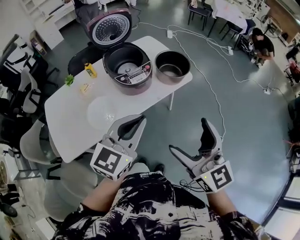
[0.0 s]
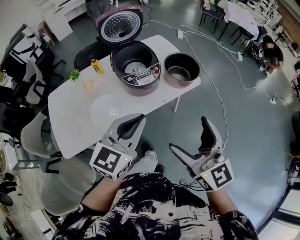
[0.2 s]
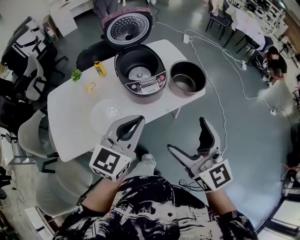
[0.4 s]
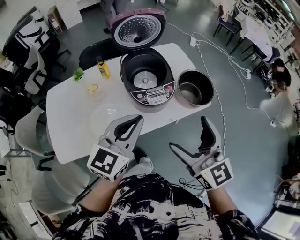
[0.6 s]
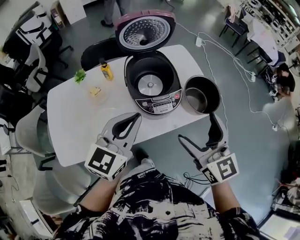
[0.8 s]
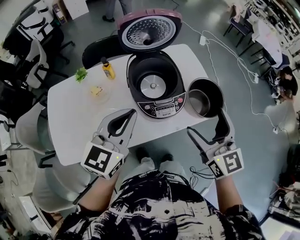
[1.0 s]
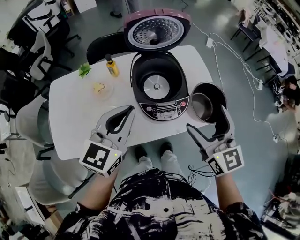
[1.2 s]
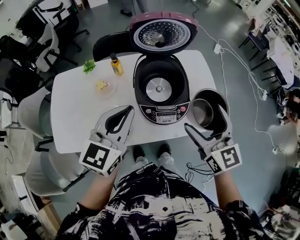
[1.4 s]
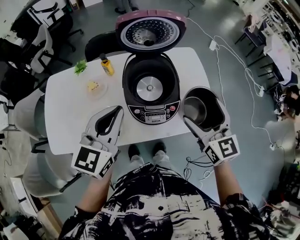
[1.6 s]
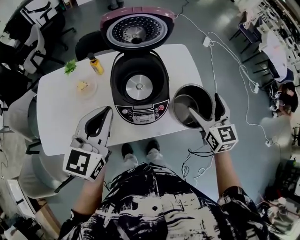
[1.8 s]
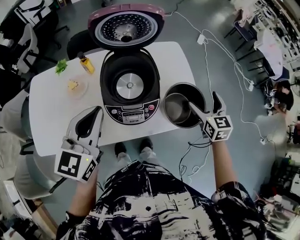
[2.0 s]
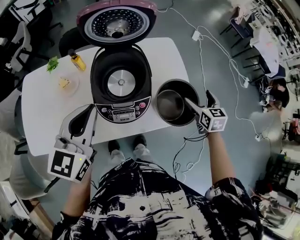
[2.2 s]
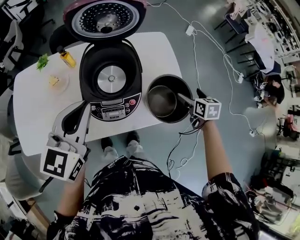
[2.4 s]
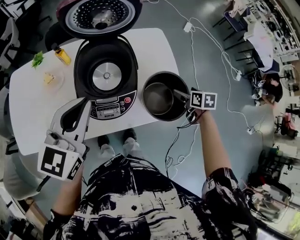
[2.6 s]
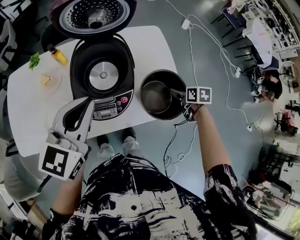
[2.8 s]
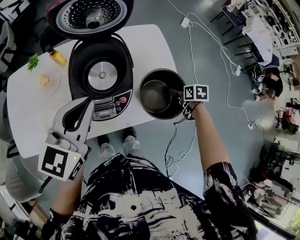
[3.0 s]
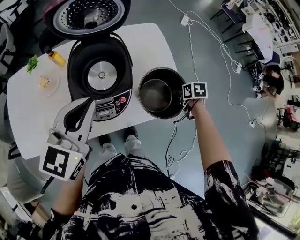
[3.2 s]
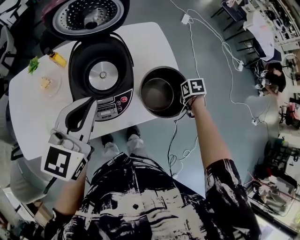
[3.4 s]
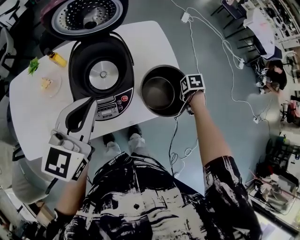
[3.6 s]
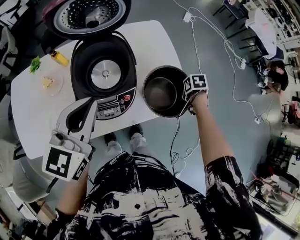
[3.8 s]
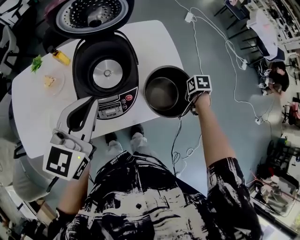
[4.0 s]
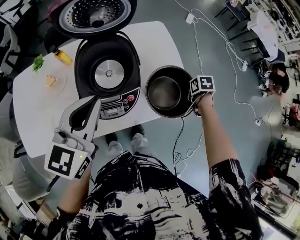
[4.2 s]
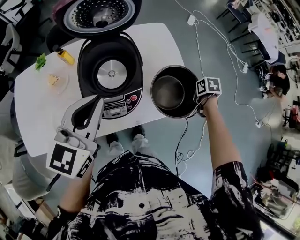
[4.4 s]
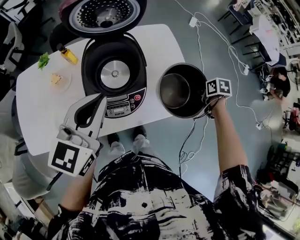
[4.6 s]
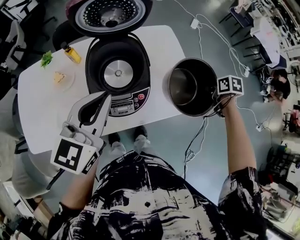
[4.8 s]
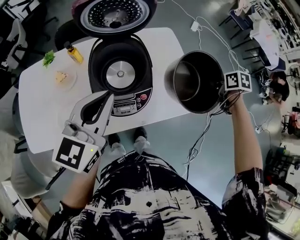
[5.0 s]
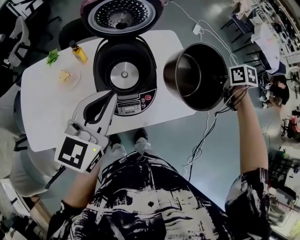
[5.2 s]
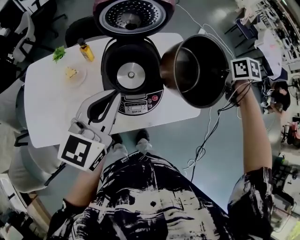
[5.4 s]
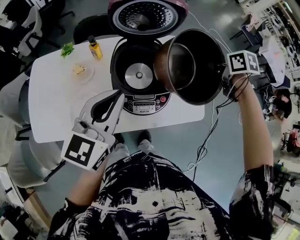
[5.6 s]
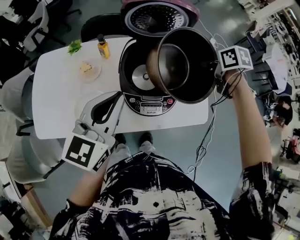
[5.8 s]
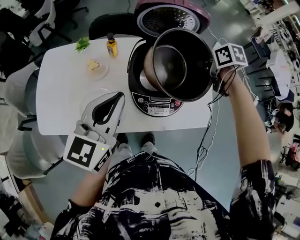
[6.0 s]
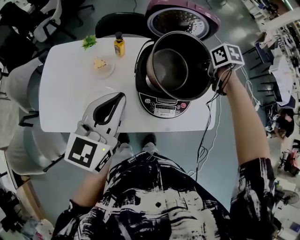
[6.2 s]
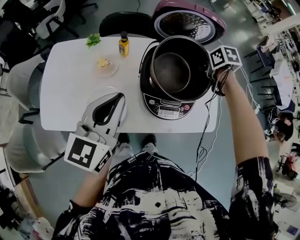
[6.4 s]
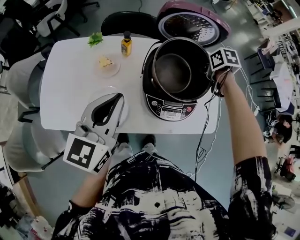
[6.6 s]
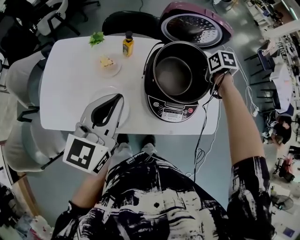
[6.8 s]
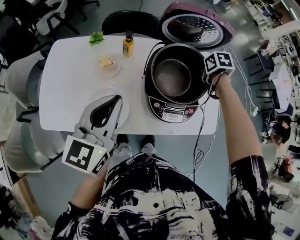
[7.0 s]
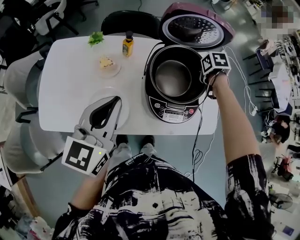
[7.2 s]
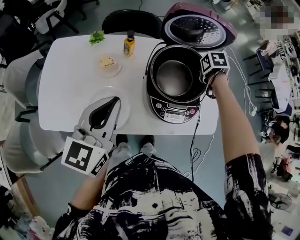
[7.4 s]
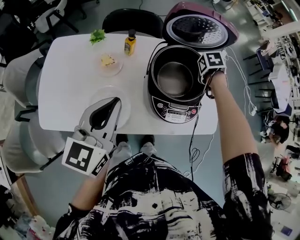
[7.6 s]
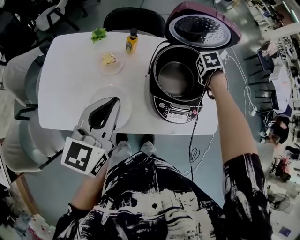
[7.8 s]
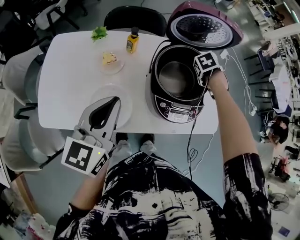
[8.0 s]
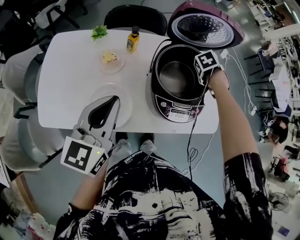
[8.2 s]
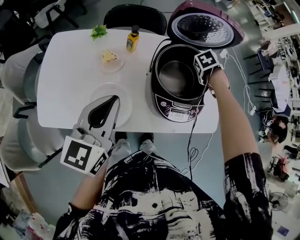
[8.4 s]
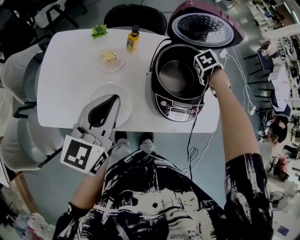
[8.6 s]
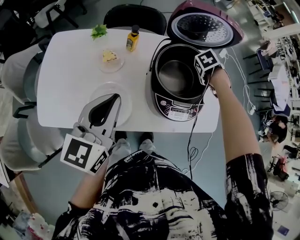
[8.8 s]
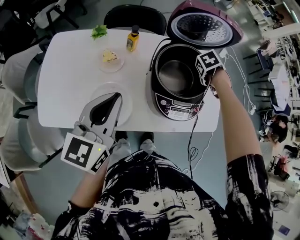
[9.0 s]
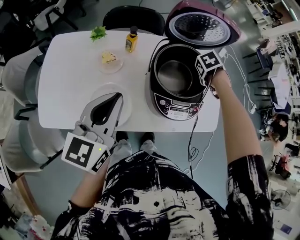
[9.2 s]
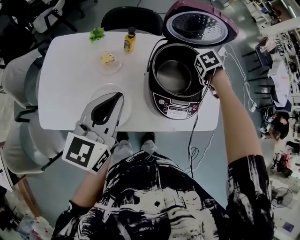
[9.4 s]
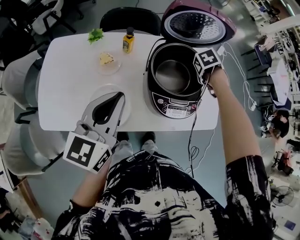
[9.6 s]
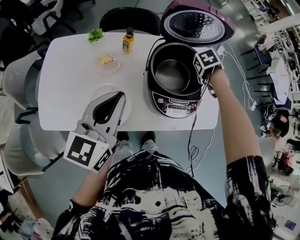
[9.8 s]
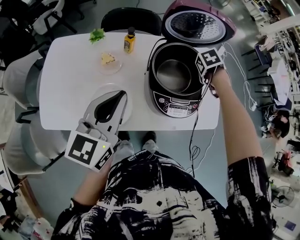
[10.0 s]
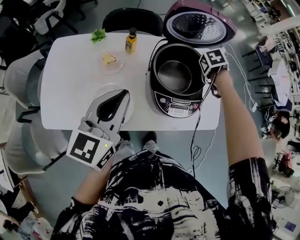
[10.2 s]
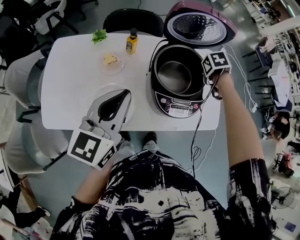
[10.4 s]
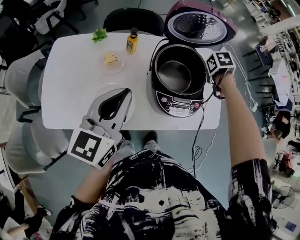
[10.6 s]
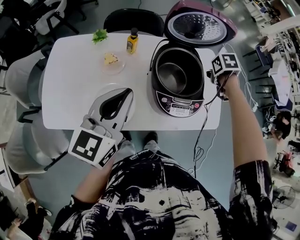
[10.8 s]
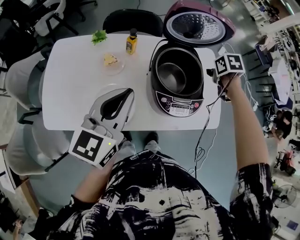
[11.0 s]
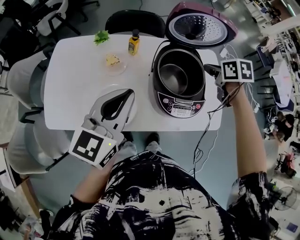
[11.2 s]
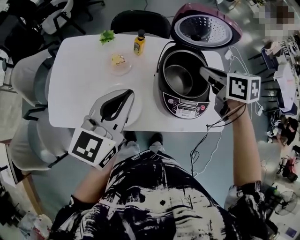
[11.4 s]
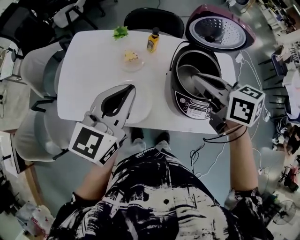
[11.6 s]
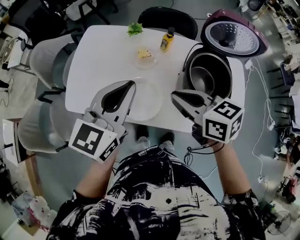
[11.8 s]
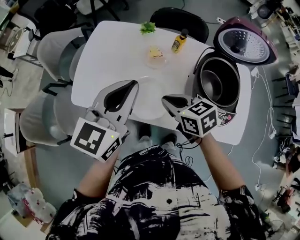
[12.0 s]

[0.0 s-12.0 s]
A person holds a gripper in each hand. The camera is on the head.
0.0 to 1.6 s: The right gripper shifts by roughly 40 cm, and changes its angle by roughly 20 degrees, while the left gripper ends up some 30 cm from where it was, and turns by some 30 degrees.
1.6 to 3.0 s: The left gripper goes about 10 cm to the right, while the right gripper shifts about 40 cm downward and to the right, and tips its fingers downward by approximately 50 degrees.
3.0 to 4.4 s: The right gripper closes up.
4.4 to 6.0 s: The left gripper changes place by roughly 15 cm. Meanwhile the right gripper changes place by approximately 35 cm, and changes its angle by approximately 30 degrees.
6.0 to 7.6 s: The left gripper moves roughly 10 cm; the right gripper heads downward, covering about 10 cm, and changes its angle by about 30 degrees.
9.0 to 10.4 s: The grippers make only small movements.
10.4 to 12.0 s: The left gripper changes place by about 10 cm. The right gripper goes upward and returns, roughly 15 cm each way, and points its fingers roughly 40 degrees further upward.

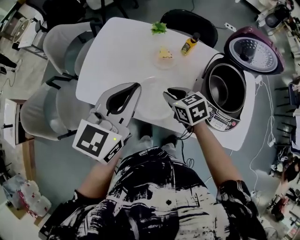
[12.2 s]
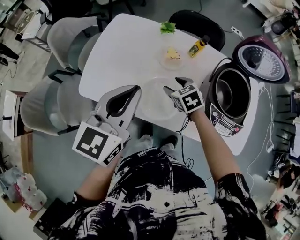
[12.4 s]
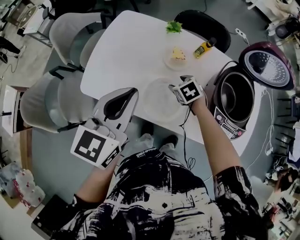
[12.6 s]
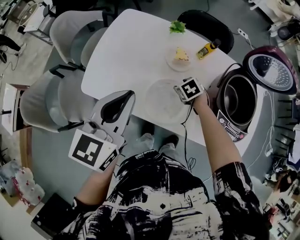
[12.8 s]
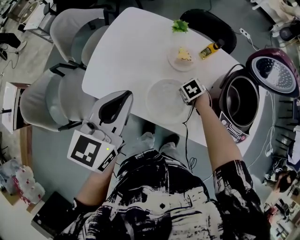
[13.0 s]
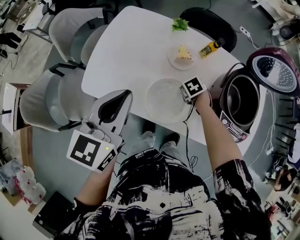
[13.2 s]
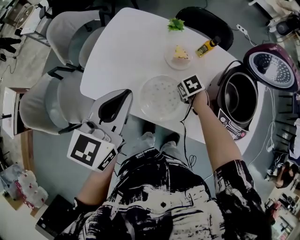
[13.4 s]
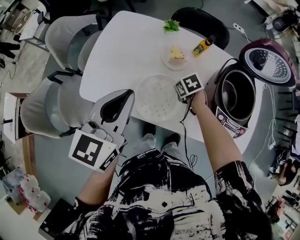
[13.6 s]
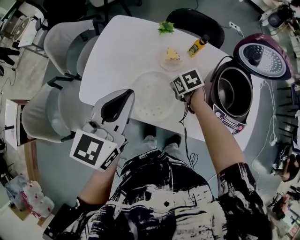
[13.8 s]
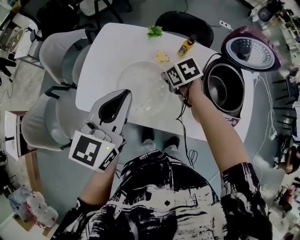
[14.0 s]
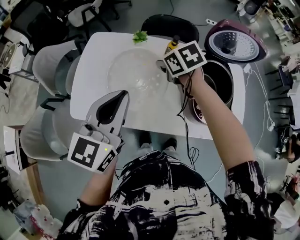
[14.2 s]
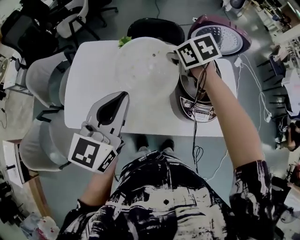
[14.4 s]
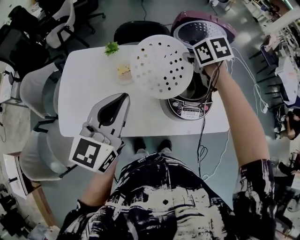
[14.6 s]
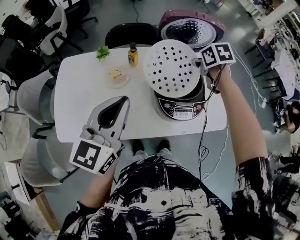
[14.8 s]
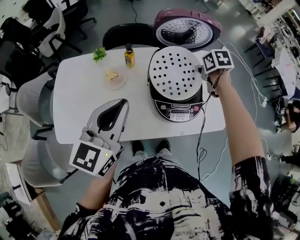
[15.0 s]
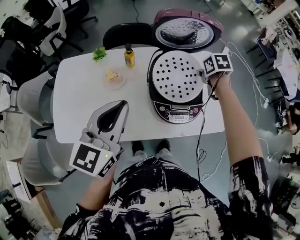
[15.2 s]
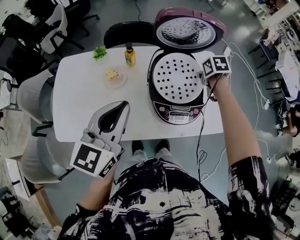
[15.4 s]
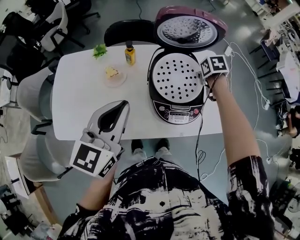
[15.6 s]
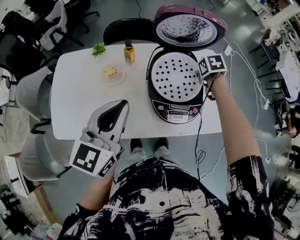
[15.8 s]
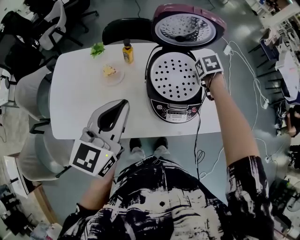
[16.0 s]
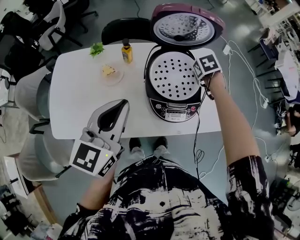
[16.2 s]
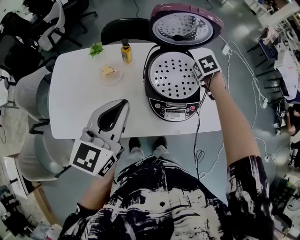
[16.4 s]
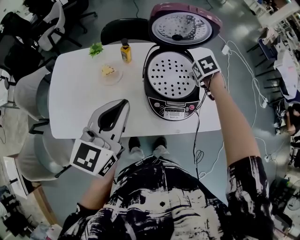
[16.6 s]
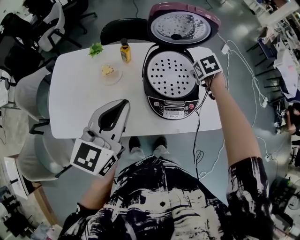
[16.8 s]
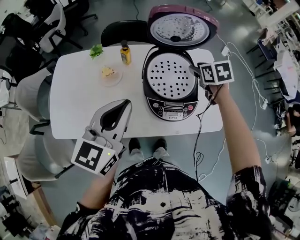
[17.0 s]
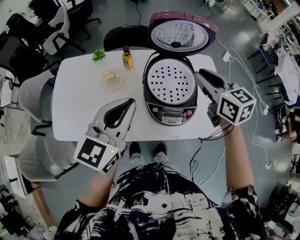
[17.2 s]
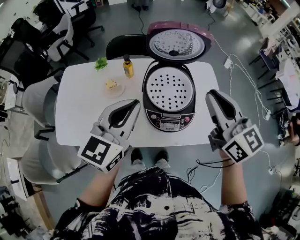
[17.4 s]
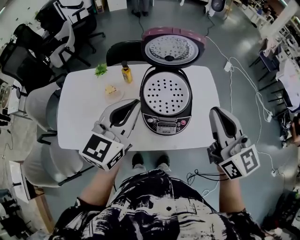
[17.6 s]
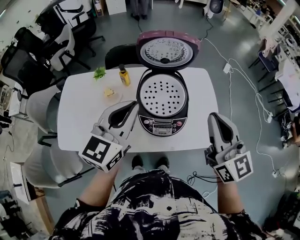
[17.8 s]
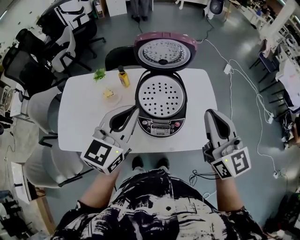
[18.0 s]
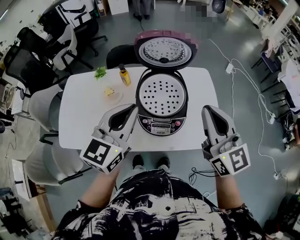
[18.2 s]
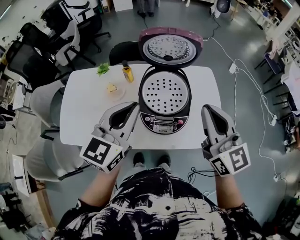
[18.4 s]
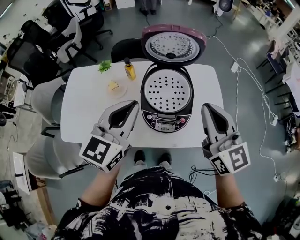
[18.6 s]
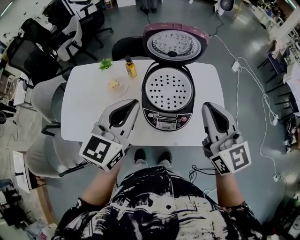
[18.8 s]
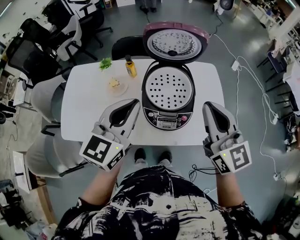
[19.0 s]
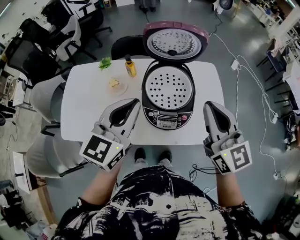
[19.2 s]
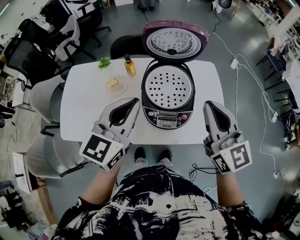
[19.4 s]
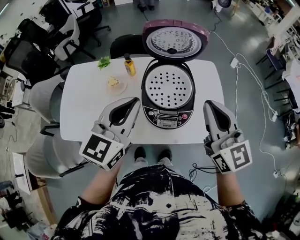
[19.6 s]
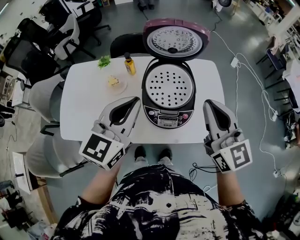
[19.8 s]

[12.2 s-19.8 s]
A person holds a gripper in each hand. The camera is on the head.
12.2 to 13.8 s: The right gripper is displaced downward by about 10 cm, turns by about 20 degrees, and opens and closes again.
13.8 to 15.2 s: The left gripper ends up approximately 20 cm from where it was, and turns by approximately 20 degrees; the right gripper shifts by roughly 40 cm, and changes its angle by about 40 degrees.
15.2 to 16.8 s: The right gripper turns by some 20 degrees.
16.8 to 18.2 s: The right gripper goes approximately 35 cm upward and backward, and points its fingers roughly 70 degrees further upward; the left gripper moves to the right, some 10 cm.
18.2 to 19.8 s: The grippers move only a little.

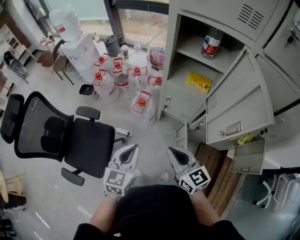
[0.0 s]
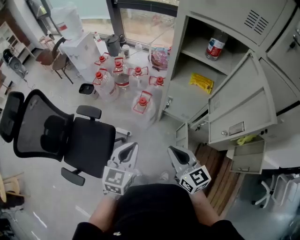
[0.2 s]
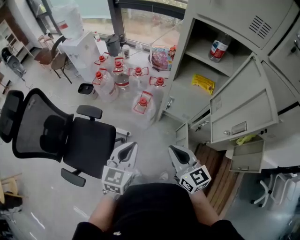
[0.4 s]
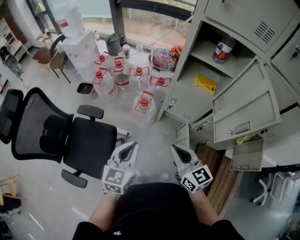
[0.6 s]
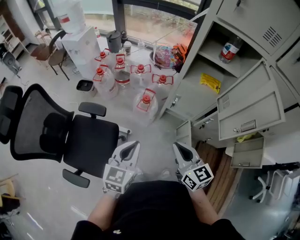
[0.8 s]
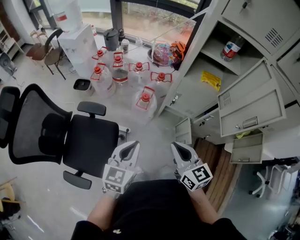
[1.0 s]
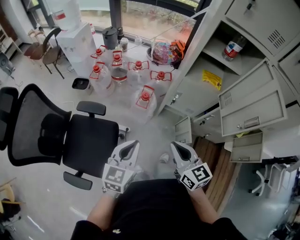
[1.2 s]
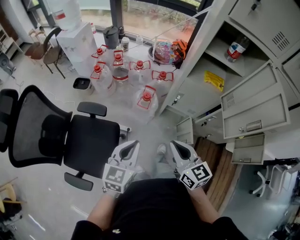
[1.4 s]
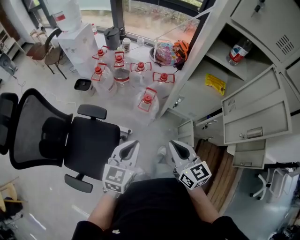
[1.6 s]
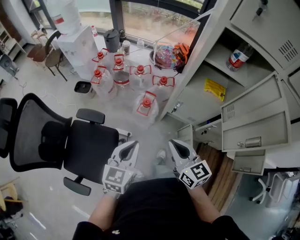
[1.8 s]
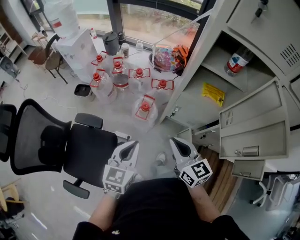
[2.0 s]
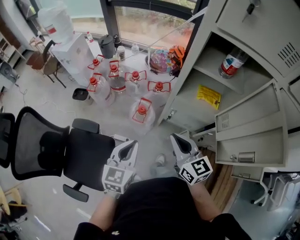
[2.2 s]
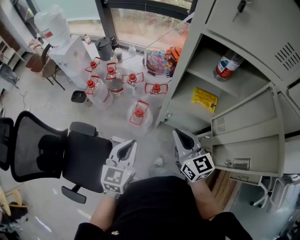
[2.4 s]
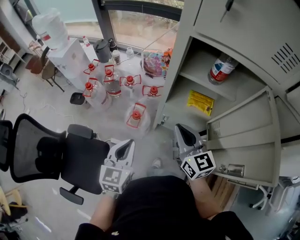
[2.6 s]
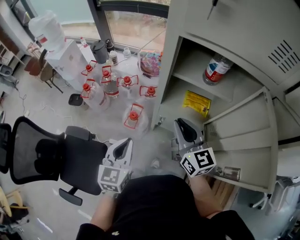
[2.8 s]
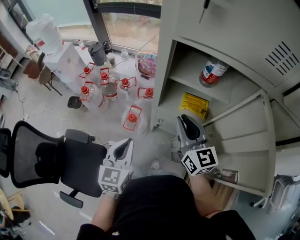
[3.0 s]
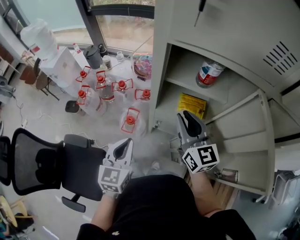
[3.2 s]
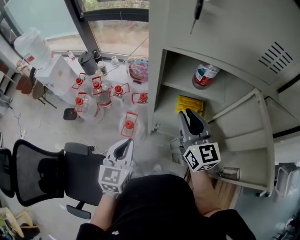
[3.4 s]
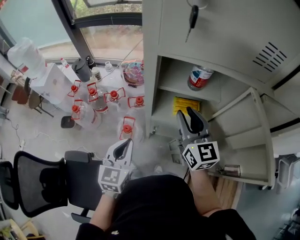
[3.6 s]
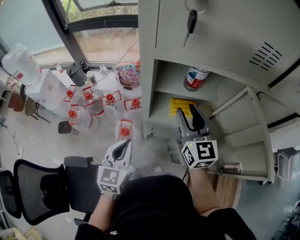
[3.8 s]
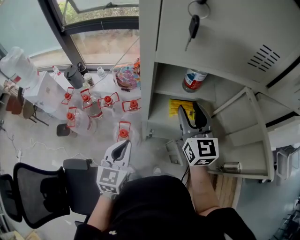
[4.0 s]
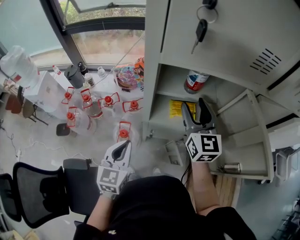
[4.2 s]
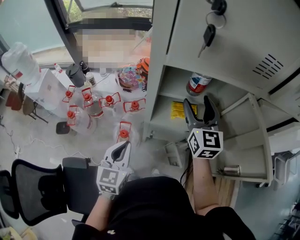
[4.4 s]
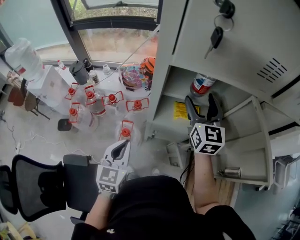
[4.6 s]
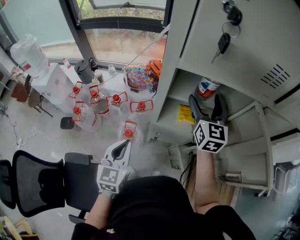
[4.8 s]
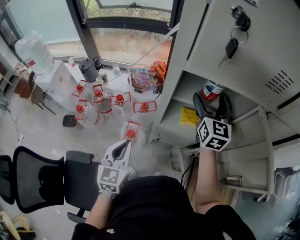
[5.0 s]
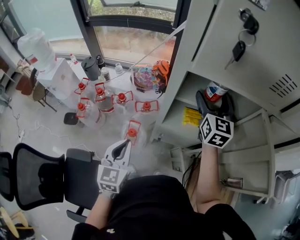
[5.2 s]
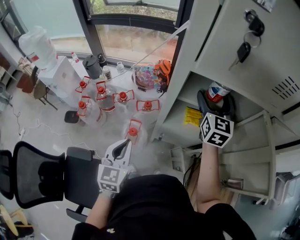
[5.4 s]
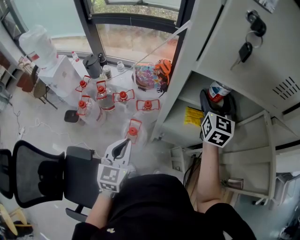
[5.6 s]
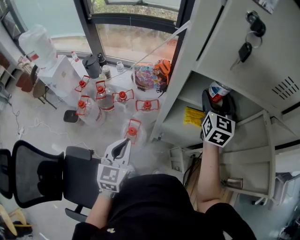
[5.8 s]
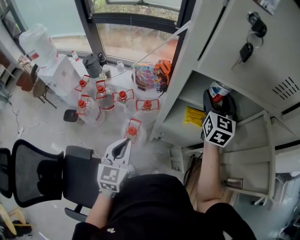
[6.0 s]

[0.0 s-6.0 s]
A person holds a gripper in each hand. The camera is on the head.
0.0 to 1.6 s: The grippers both shift to the left by some 15 cm.
1.6 to 3.0 s: Both grippers move forward and to the right, approximately 25 cm.
3.0 to 4.4 s: The right gripper goes some 15 cm forward, upward and to the right, turns by about 30 degrees, and opens up. Meanwhile the left gripper is displaced forward by some 5 cm.
4.4 to 6.0 s: The right gripper moves forward, approximately 5 cm.
